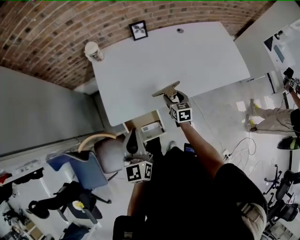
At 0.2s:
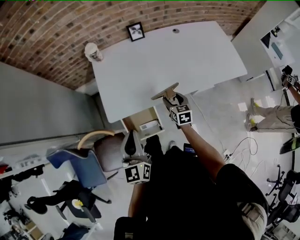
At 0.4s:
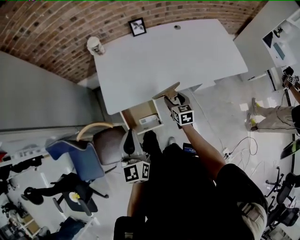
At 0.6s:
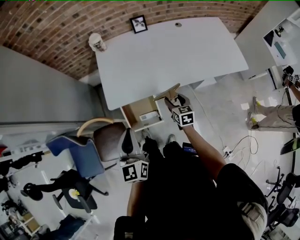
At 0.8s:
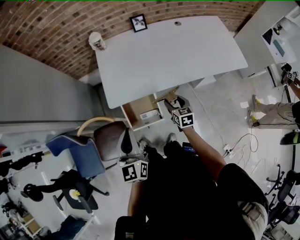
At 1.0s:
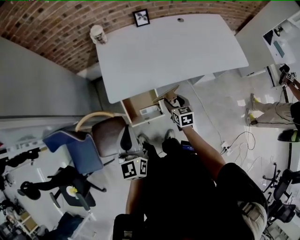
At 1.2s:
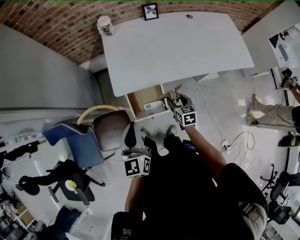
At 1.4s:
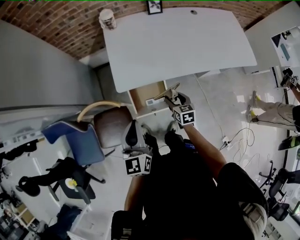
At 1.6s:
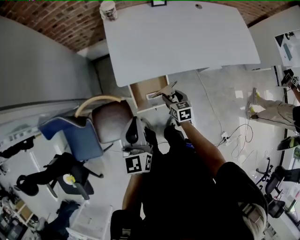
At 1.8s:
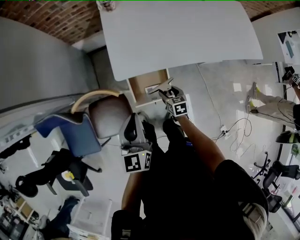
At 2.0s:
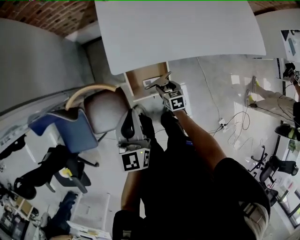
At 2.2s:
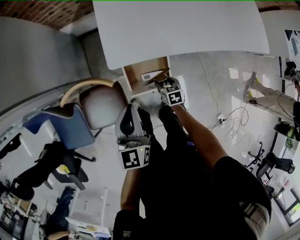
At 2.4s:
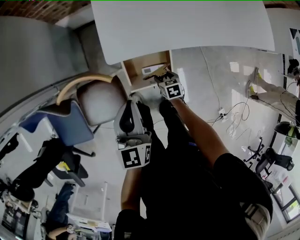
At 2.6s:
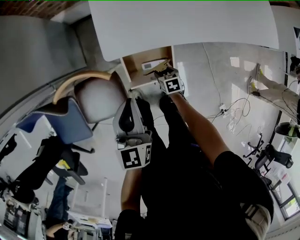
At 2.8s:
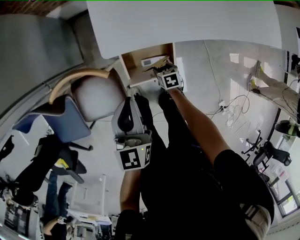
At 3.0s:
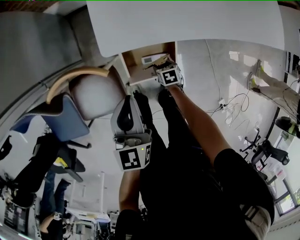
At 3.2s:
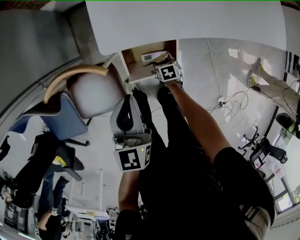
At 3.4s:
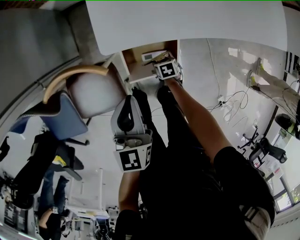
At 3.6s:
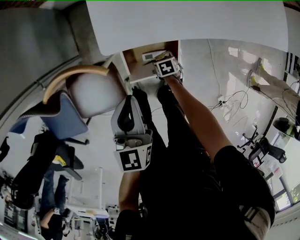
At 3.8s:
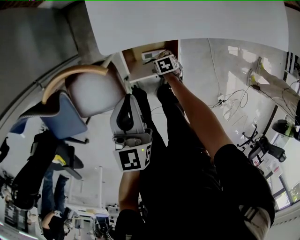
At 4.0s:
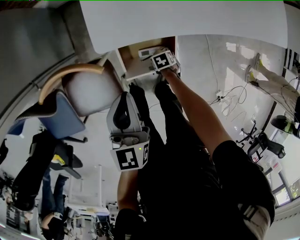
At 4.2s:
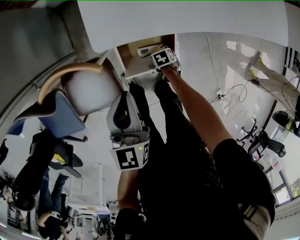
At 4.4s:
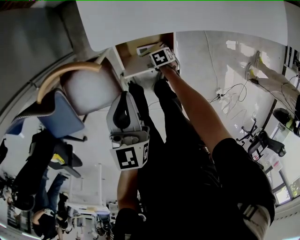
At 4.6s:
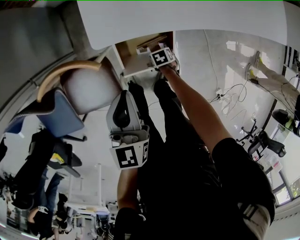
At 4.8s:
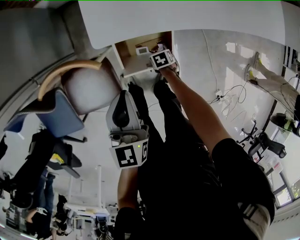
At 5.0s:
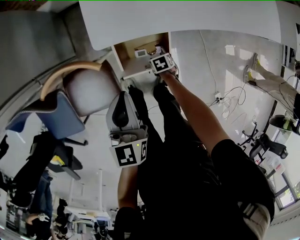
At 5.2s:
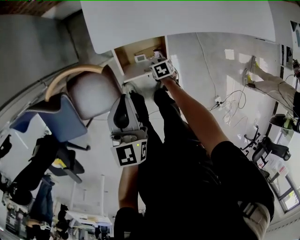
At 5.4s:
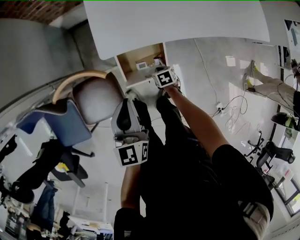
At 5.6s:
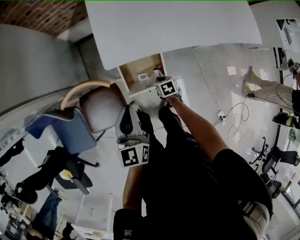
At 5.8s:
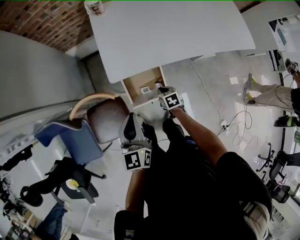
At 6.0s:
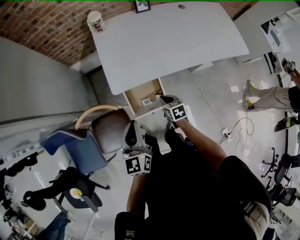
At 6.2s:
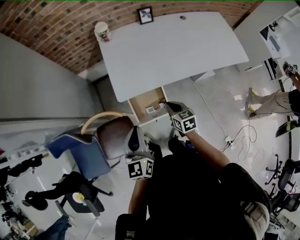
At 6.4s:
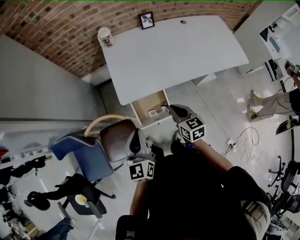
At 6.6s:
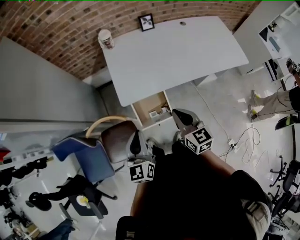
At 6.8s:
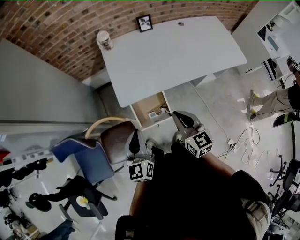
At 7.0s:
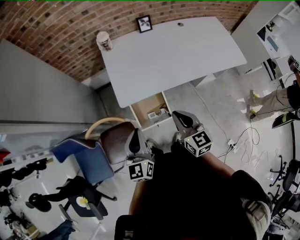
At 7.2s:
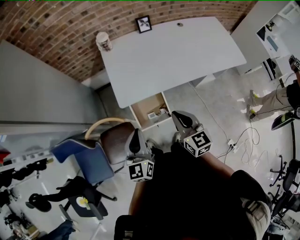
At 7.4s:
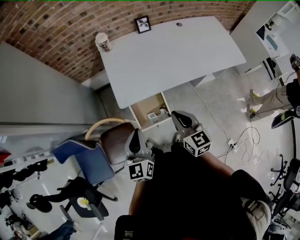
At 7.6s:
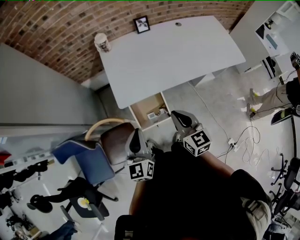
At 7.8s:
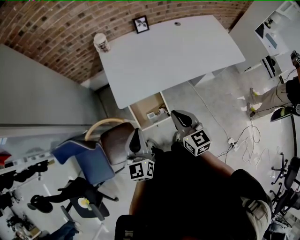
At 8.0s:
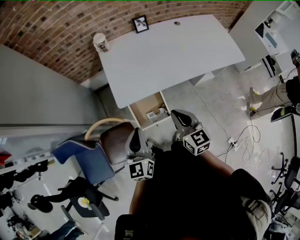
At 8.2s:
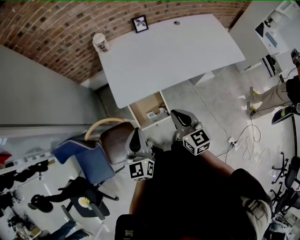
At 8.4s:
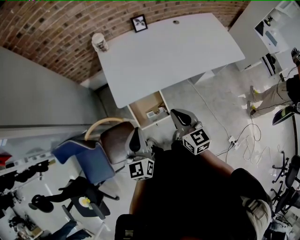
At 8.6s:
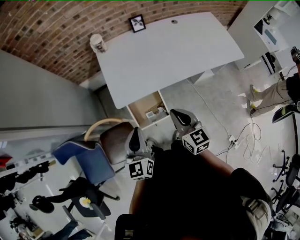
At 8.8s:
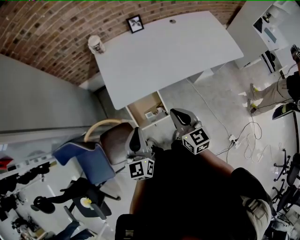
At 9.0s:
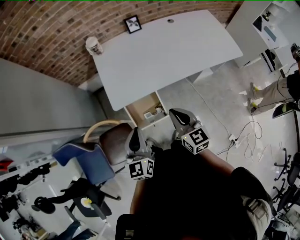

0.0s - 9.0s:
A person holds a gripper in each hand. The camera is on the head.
0.0s - 1.6s: The grippers both shift backward and to the left by some 15 cm.
1.6s - 3.0s: The right gripper shifts some 25 cm downward, and rotates approximately 30 degrees. Meanwhile the left gripper heads downward, covering approximately 15 cm.
3.0s - 4.4s: The right gripper goes about 5 cm downward.
4.4s - 6.0s: The right gripper shifts about 30 cm upward, tips its fingers upward by approximately 40 degrees, and closes; the left gripper shifts about 15 cm upward.
6.0s - 7.6s: The right gripper goes roughly 25 cm upward, and points its fingers some 30 degrees further upward.
7.6s - 9.0s: The grippers make only small movements.

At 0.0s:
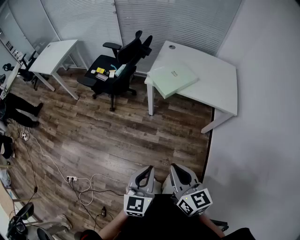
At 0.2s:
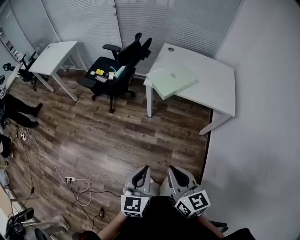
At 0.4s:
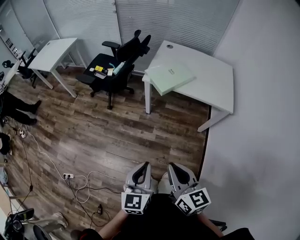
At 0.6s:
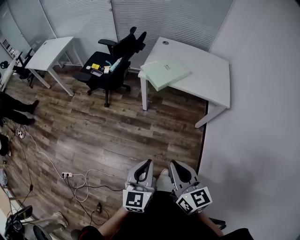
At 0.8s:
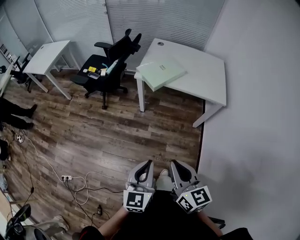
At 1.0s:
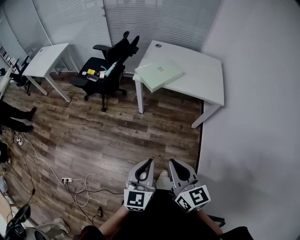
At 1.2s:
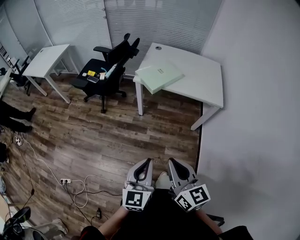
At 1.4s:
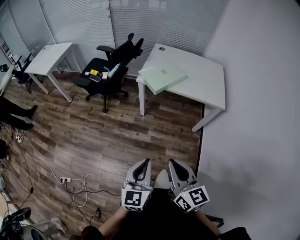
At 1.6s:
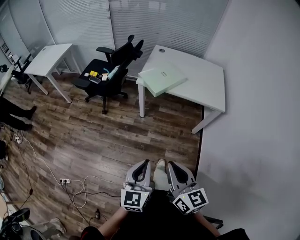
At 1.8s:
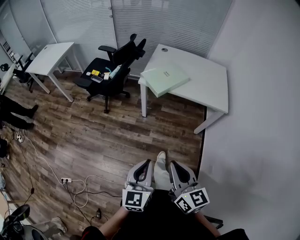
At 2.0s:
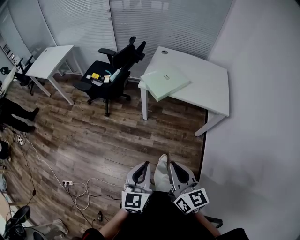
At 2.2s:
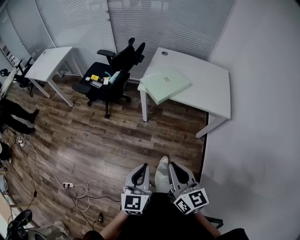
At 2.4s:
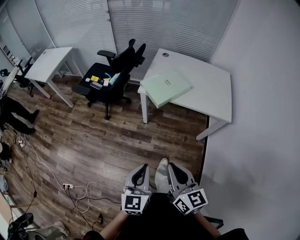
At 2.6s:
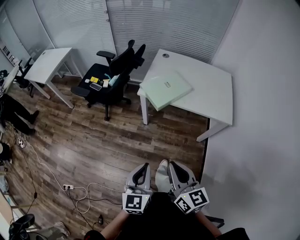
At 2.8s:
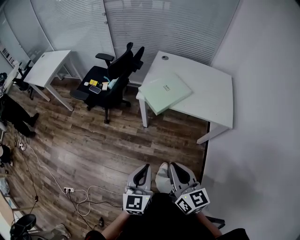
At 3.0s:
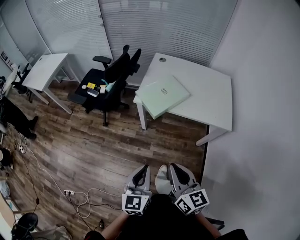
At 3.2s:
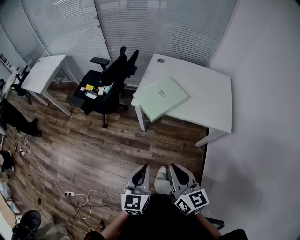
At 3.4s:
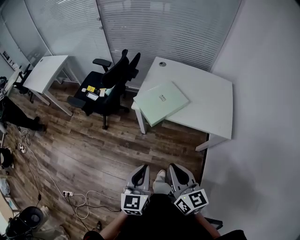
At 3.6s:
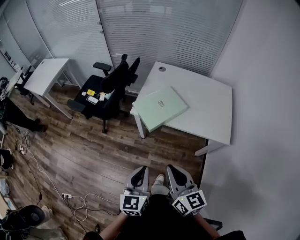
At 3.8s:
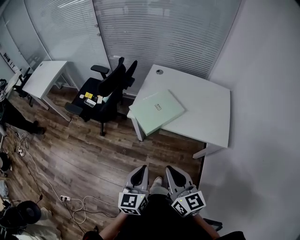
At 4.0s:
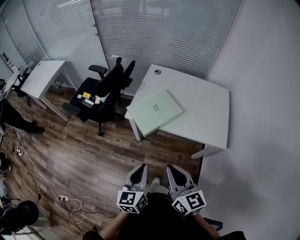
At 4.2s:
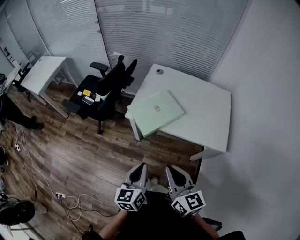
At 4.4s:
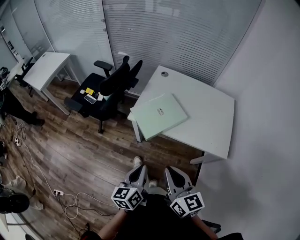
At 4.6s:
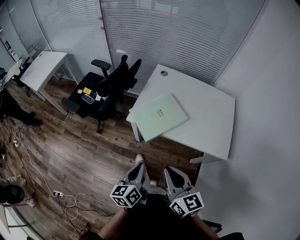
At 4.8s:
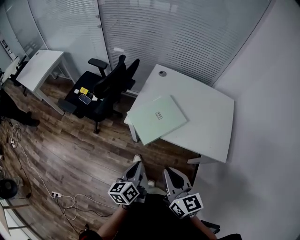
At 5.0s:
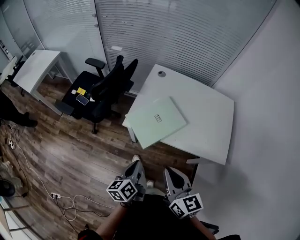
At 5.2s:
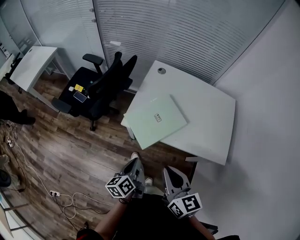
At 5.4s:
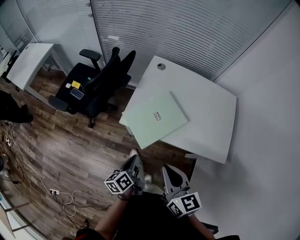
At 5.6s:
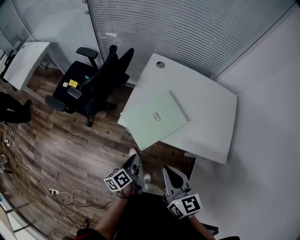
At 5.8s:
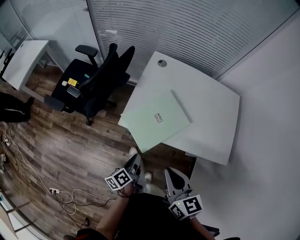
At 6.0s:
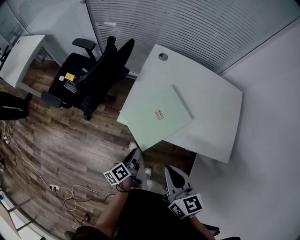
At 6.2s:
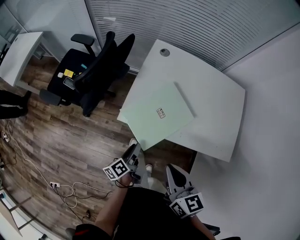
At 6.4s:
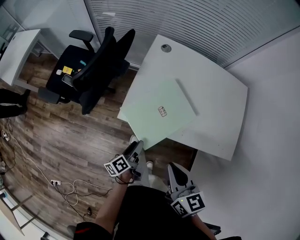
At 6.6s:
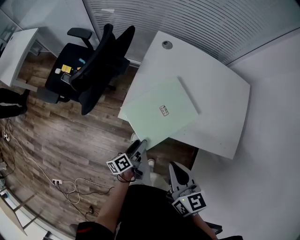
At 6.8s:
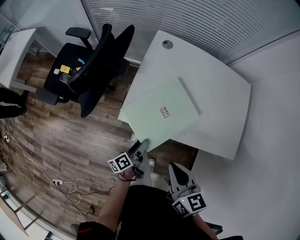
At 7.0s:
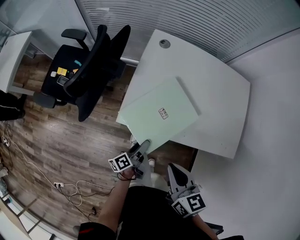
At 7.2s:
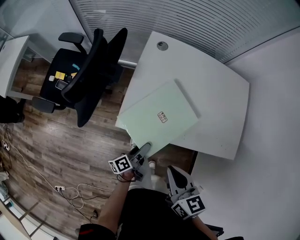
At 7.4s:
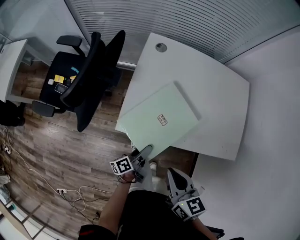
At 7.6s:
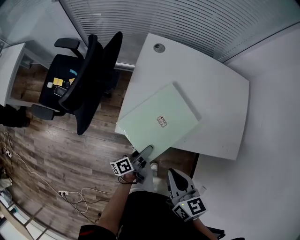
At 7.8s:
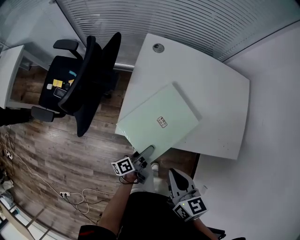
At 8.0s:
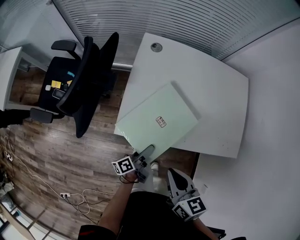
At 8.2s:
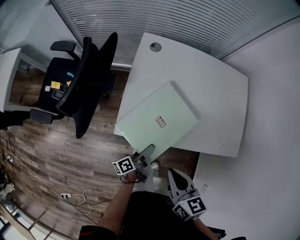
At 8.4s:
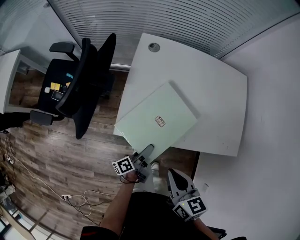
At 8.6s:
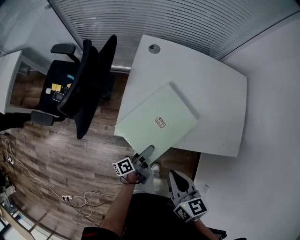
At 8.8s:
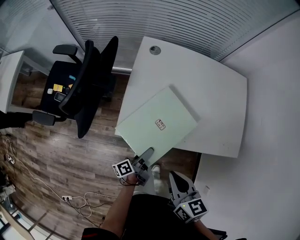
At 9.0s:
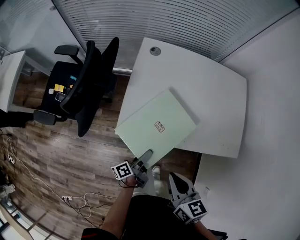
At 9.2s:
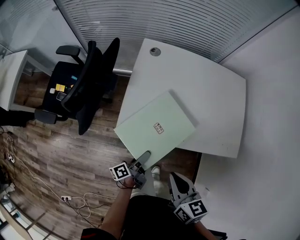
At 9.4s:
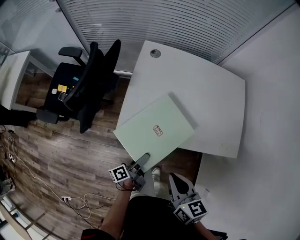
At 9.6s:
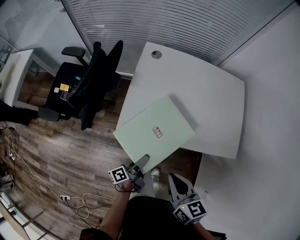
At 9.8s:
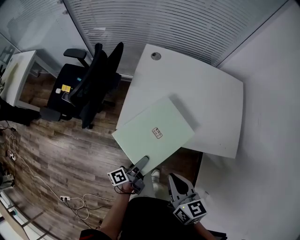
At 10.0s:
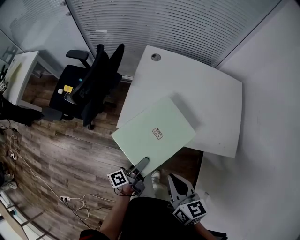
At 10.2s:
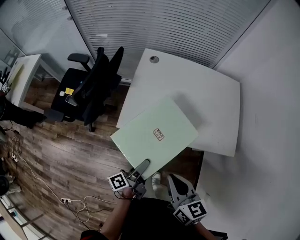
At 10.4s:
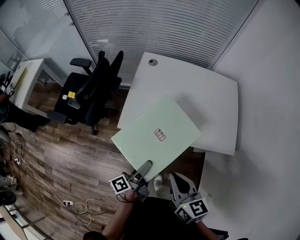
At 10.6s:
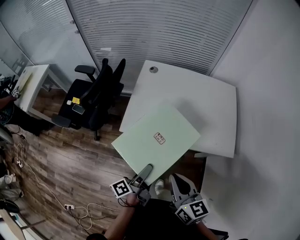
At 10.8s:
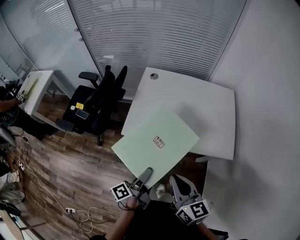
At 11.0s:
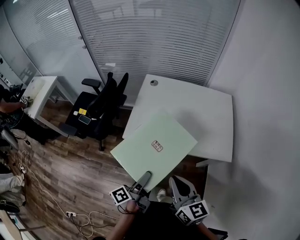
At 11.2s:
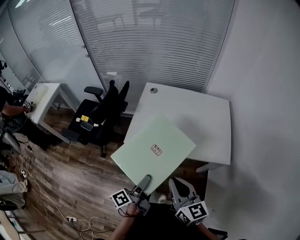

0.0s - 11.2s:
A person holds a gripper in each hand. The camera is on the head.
0.0s - 1.6s: The right gripper goes some 5 cm backward.
1.6s - 3.2s: The two grippers go about 20 cm forward.
3.2s - 4.8s: The left gripper is displaced forward and downward by about 20 cm, and swivels approximately 40 degrees. The right gripper moves forward, roughly 15 cm.
4.8s - 6.4s: The left gripper shifts about 25 cm downward and forward, swivels approximately 30 degrees, and opens its fingers, while the right gripper goes approximately 15 cm forward and downward.
6.4s - 8.0s: The left gripper shifts by about 10 cm, while the right gripper moves roughly 5 cm.
8.0s - 9.6s: Both grippers travel together backward, roughly 5 cm.
9.6s - 11.2s: The left gripper travels upward and backward by some 25 cm. Meanwhile the right gripper travels upward, backward and to the right by some 15 cm, and turns by about 20 degrees.

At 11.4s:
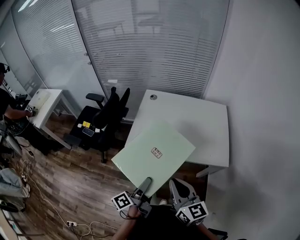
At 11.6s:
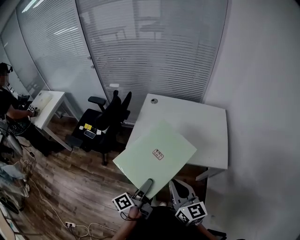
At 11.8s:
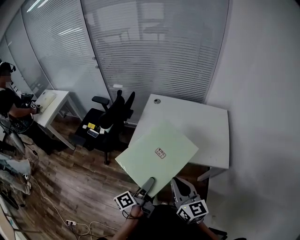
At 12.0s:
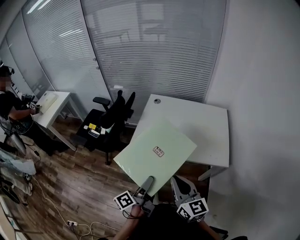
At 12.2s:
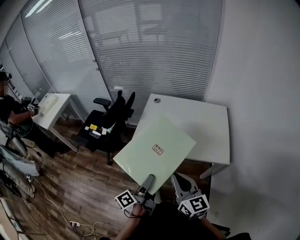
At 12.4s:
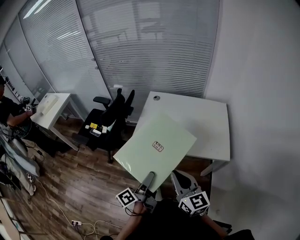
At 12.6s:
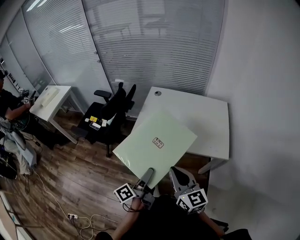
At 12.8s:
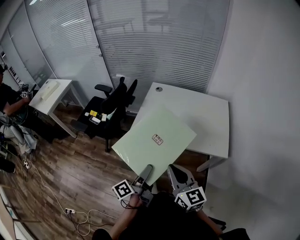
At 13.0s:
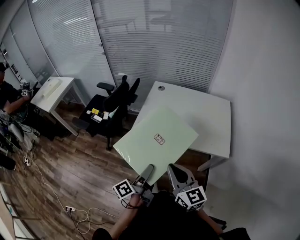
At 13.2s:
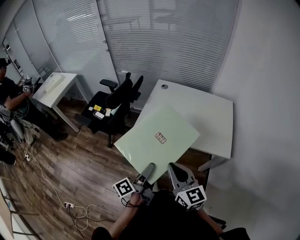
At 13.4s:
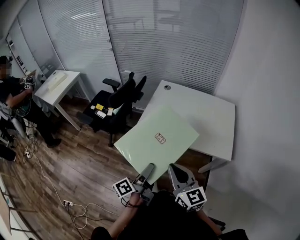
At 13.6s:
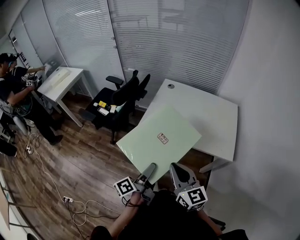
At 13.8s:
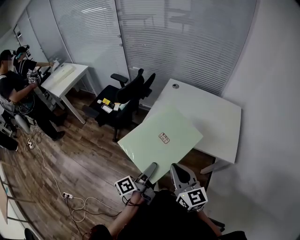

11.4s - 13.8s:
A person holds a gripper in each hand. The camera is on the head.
11.4s - 12.6s: The left gripper moves approximately 5 cm.
12.6s - 13.8s: The right gripper changes place by some 5 cm.

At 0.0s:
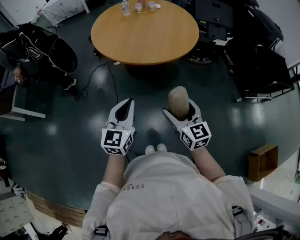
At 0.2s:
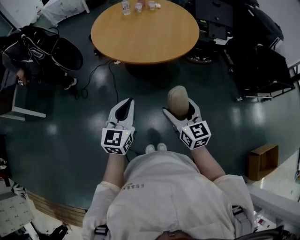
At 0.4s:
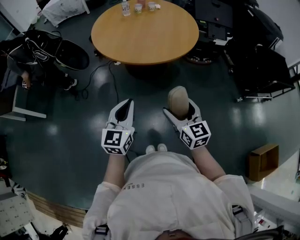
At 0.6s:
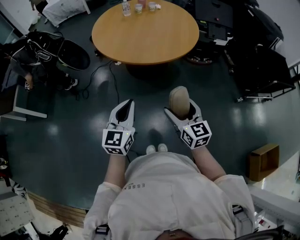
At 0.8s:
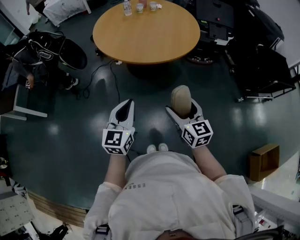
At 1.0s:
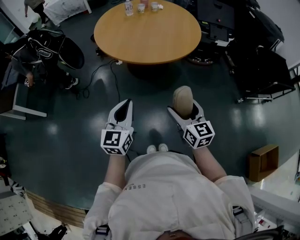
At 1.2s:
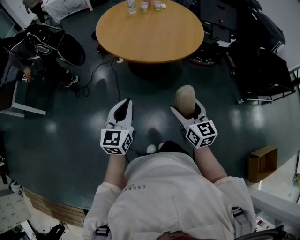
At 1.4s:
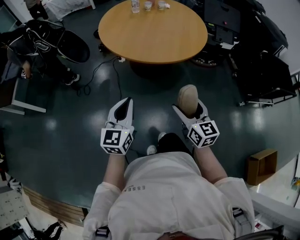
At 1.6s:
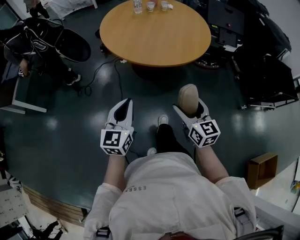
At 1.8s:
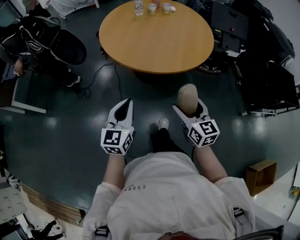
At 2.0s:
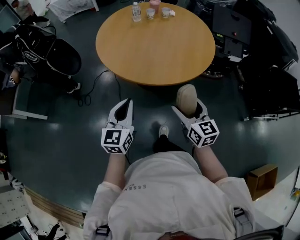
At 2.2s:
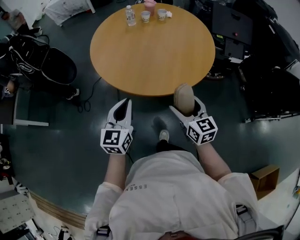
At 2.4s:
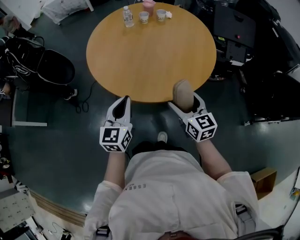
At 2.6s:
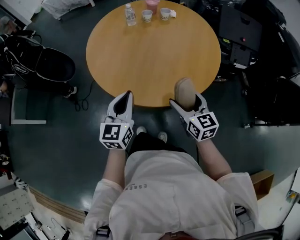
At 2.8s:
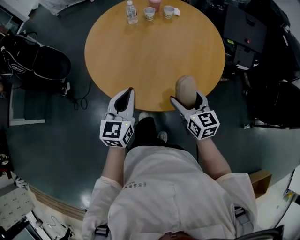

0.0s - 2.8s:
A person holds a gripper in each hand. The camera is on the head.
0.0s - 1.4s: There are only small adjustments of the grippers.
1.4s - 2.8s: The pair of grippers is taken forward, about 40 cm.
